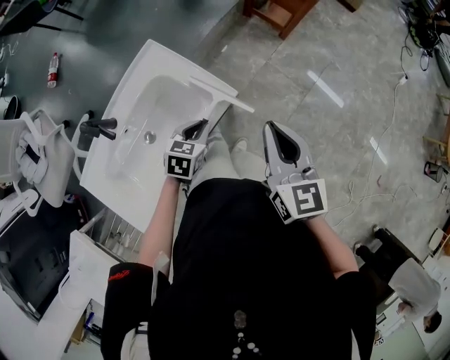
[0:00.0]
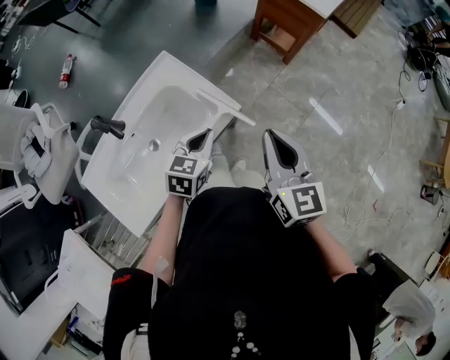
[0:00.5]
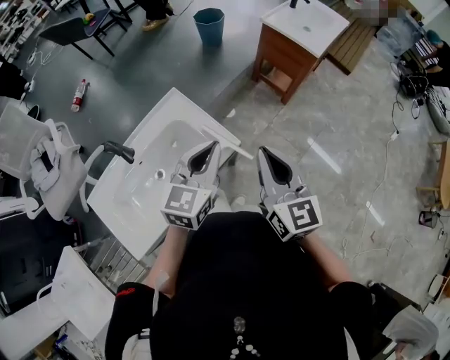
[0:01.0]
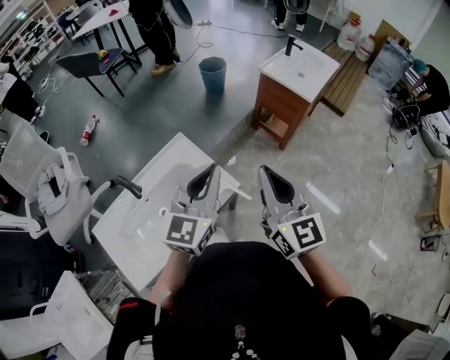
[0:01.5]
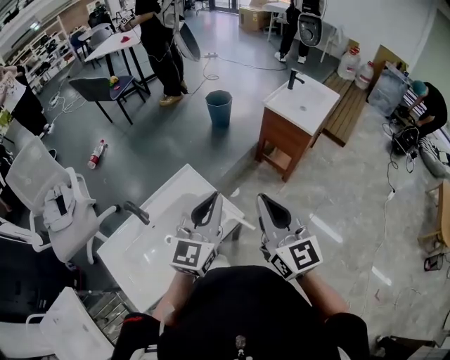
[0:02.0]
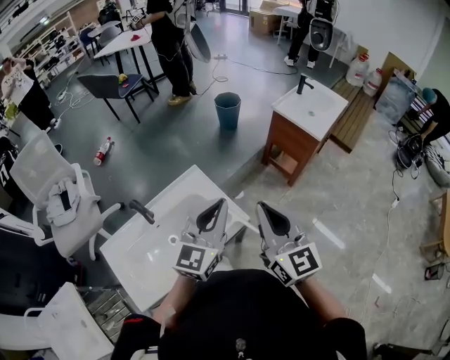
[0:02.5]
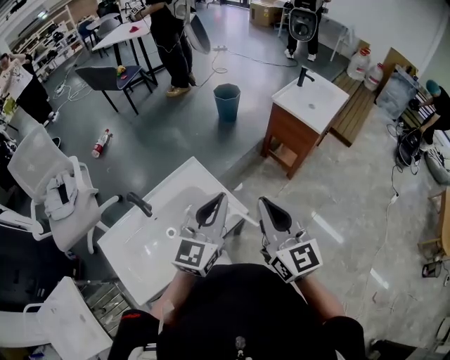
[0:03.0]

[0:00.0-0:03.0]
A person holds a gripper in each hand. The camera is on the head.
0:00.0 to 0:01.5: The right gripper goes some 15 cm upward, and turns by about 20 degrees; the left gripper heads upward, covering approximately 35 cm, and angles its fingers upward, by roughly 50 degrees.
0:01.5 to 0:03.0: The grippers move only a little.

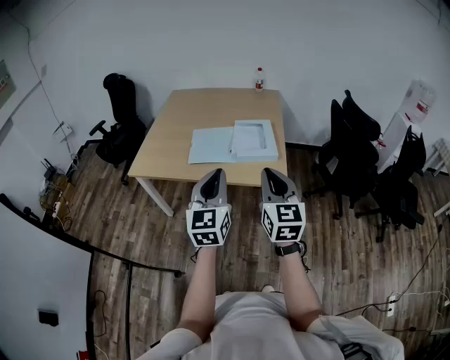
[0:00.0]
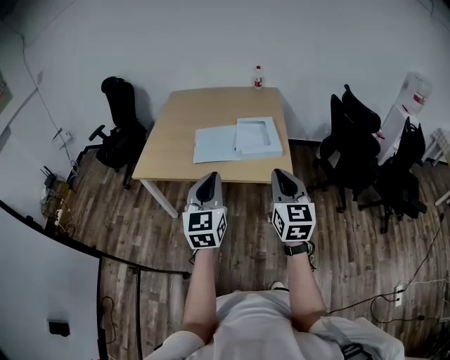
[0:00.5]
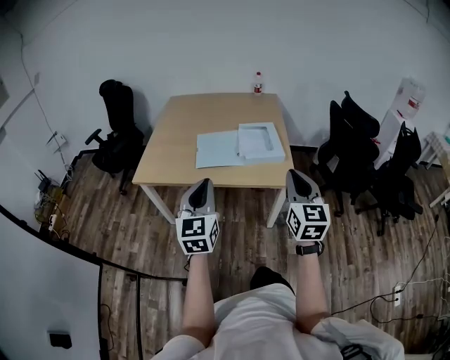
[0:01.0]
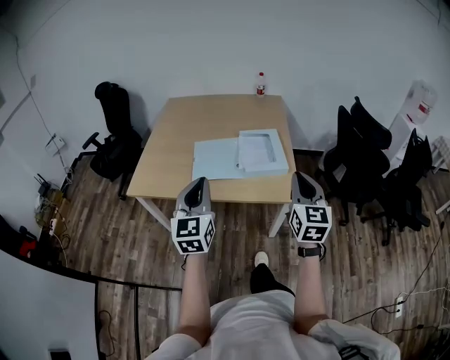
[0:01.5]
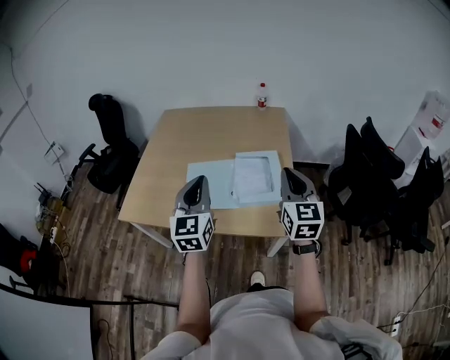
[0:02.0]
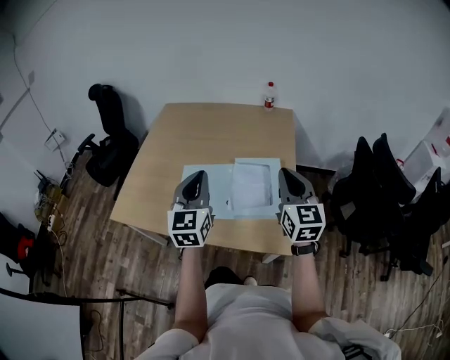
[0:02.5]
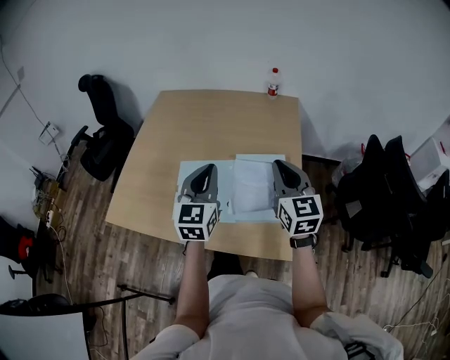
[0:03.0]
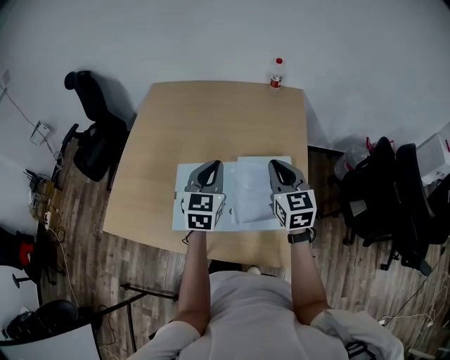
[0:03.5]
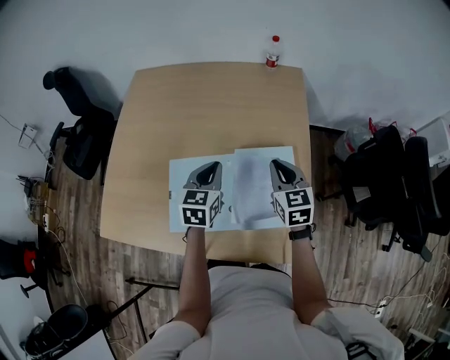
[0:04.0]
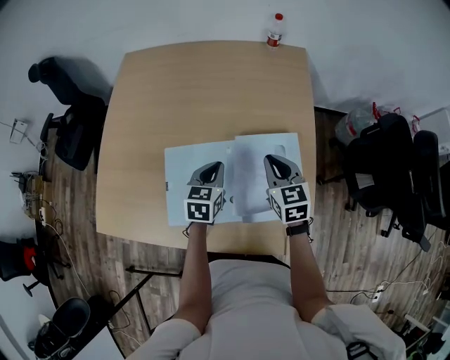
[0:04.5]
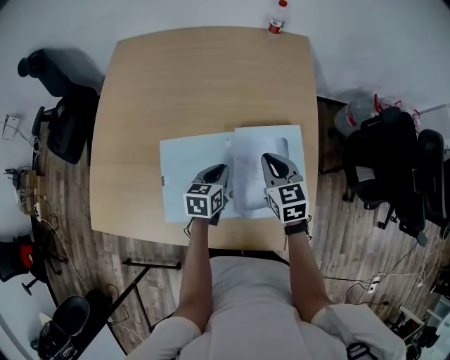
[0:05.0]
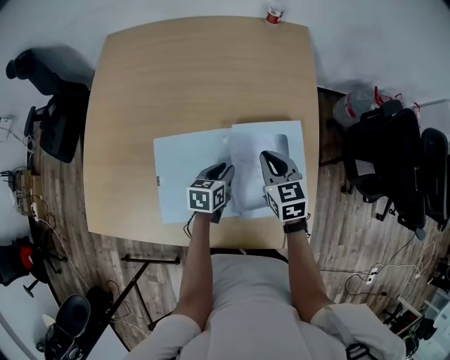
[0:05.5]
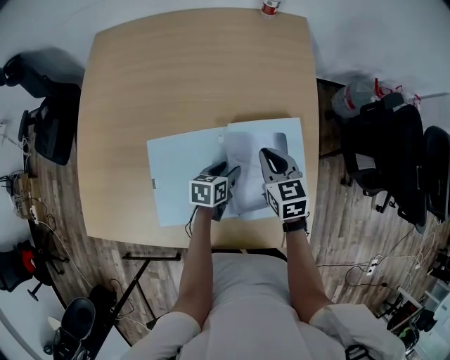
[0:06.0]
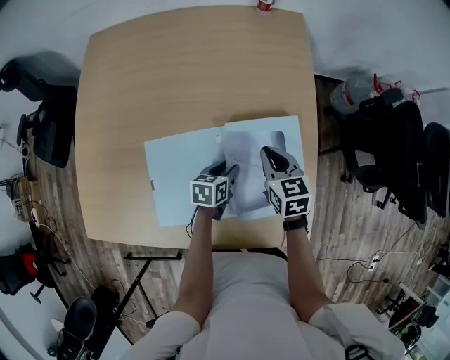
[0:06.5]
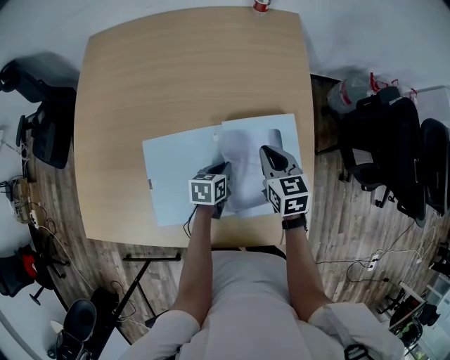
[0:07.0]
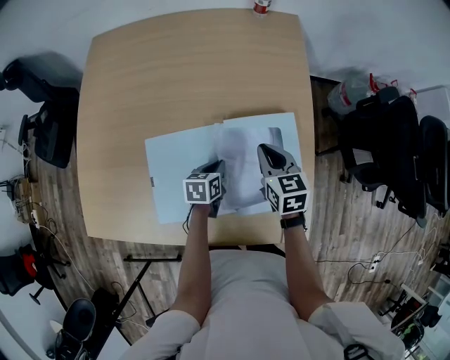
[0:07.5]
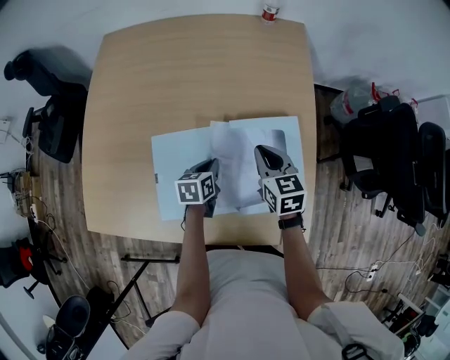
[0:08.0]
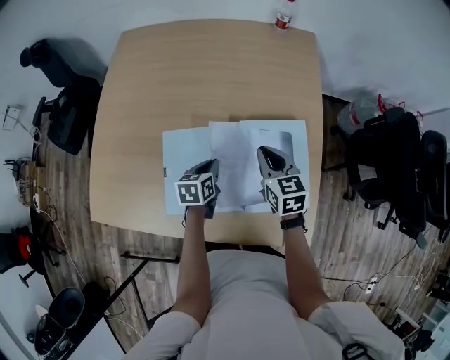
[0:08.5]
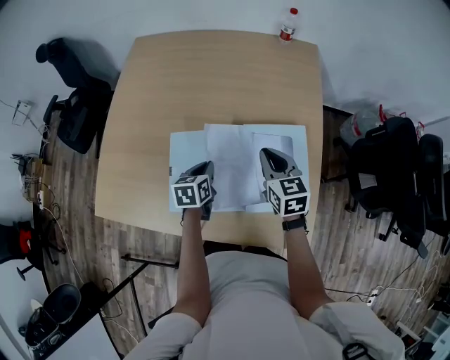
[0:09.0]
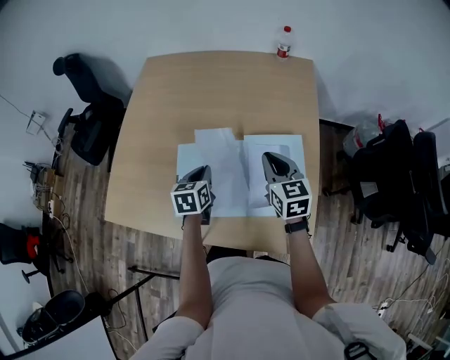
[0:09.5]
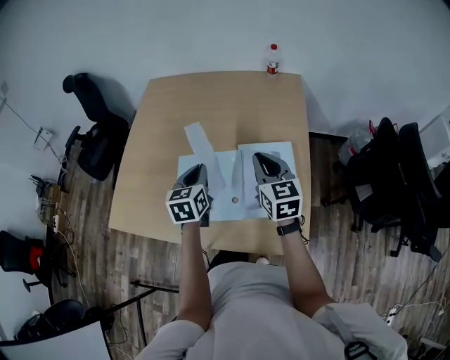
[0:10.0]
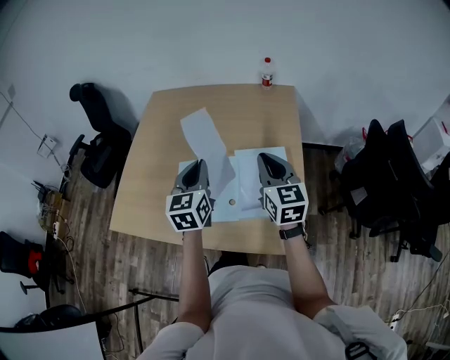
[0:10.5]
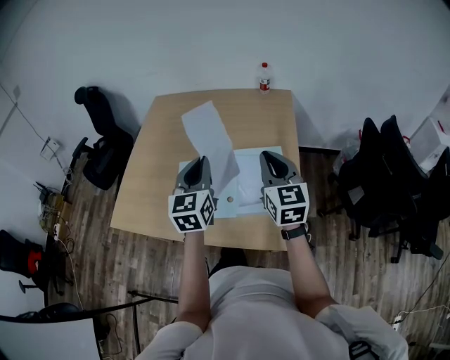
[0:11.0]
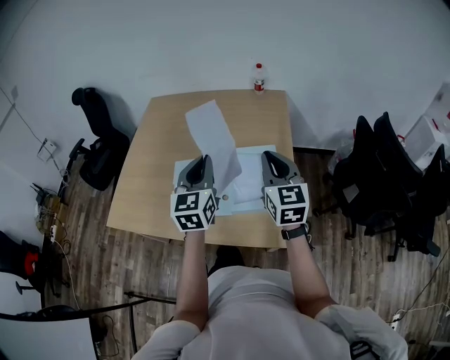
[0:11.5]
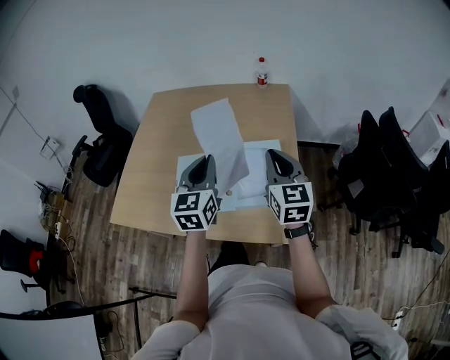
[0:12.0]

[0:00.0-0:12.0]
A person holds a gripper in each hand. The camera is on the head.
0:00.0 to 0:02.0: The grippers both shift forward by some 30 cm.
0:02.0 to 0:04.0: The two grippers go some 35 cm forward and downward. The left gripper changes its angle by roughly 30 degrees. The right gripper swivels approximately 30 degrees.
0:04.0 to 0:06.0: The right gripper moves downward, roughly 10 cm; the left gripper moves downward, some 25 cm, swivels approximately 40 degrees, and opens up.
0:06.0 to 0:08.0: The left gripper goes some 5 cm to the left, and closes up.
0:08.0 to 0:10.0: The left gripper heads upward, covering some 20 cm, and swivels some 30 degrees; the right gripper is displaced upward and backward by roughly 15 cm.
0:10.0 to 0:12.0: The left gripper shifts some 20 cm upward, backward and to the right, and changes its angle by some 20 degrees; the right gripper travels backward, upward and to the right by approximately 15 cm.

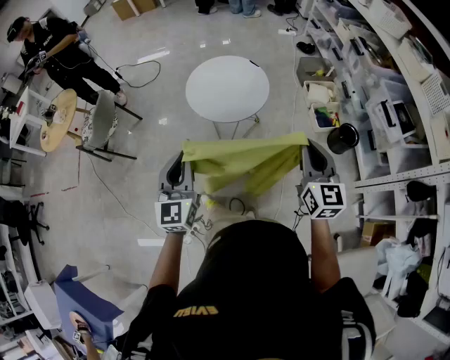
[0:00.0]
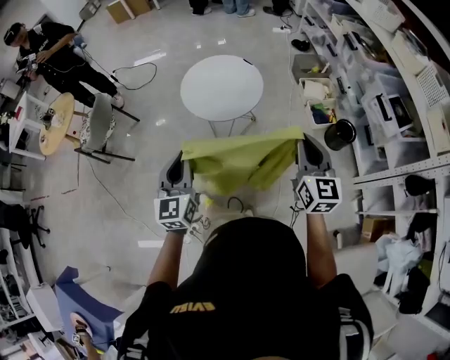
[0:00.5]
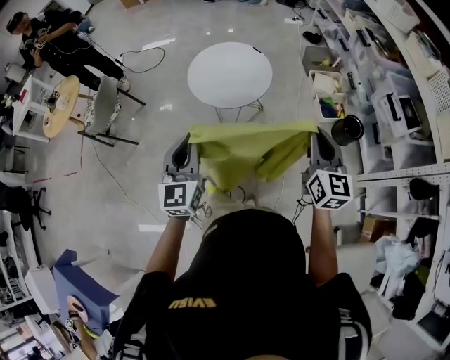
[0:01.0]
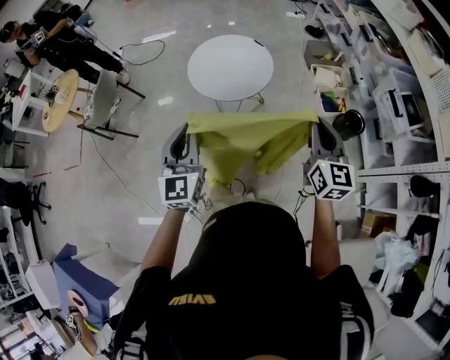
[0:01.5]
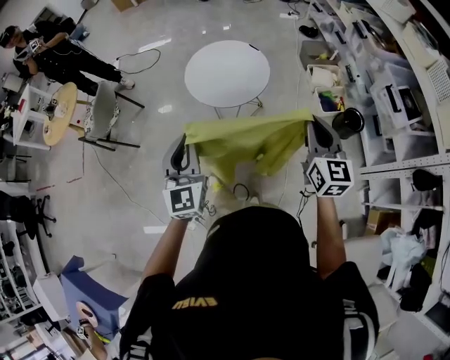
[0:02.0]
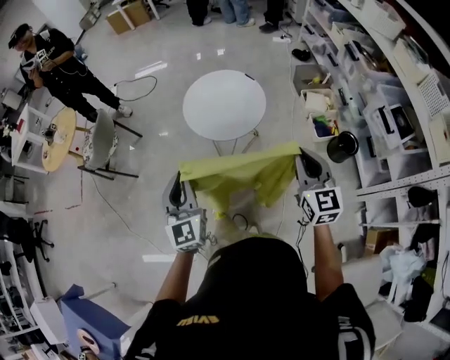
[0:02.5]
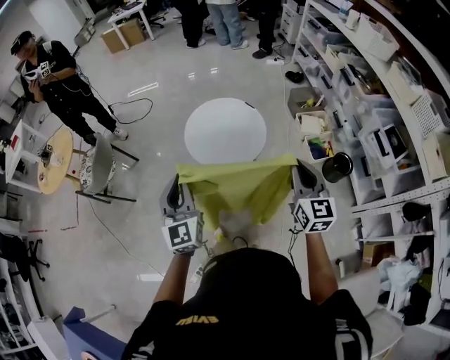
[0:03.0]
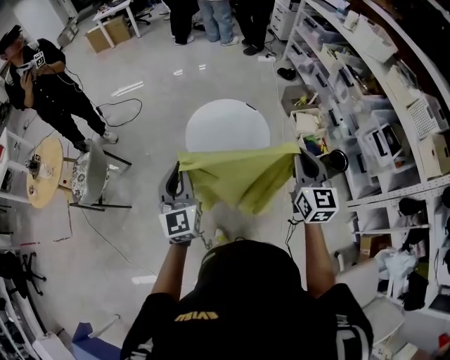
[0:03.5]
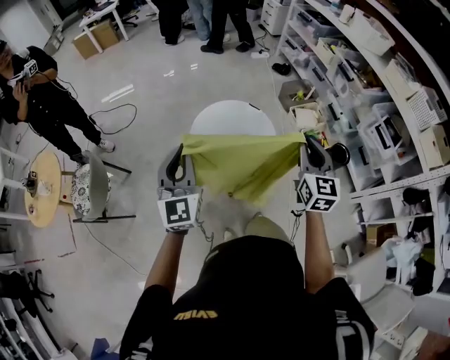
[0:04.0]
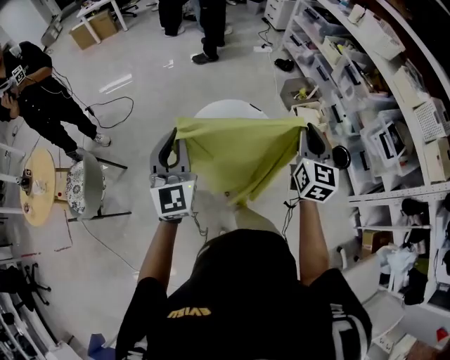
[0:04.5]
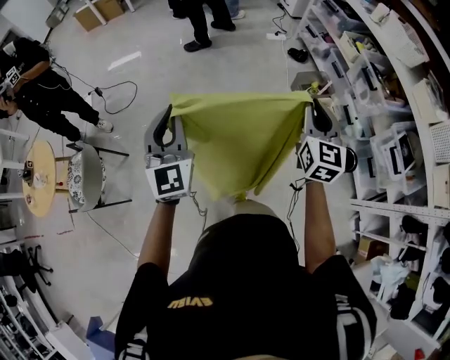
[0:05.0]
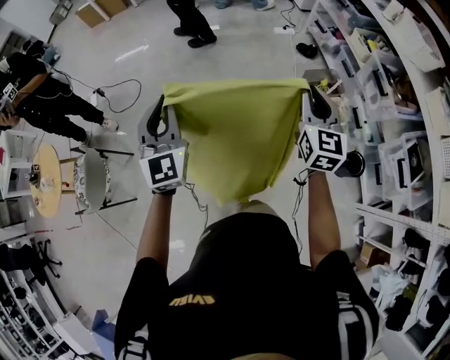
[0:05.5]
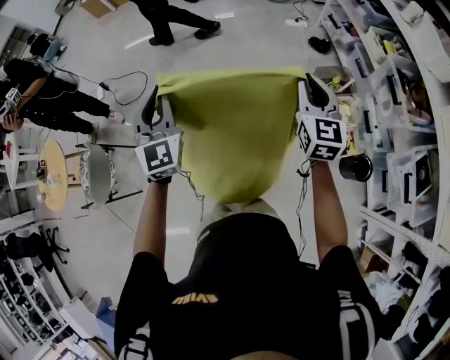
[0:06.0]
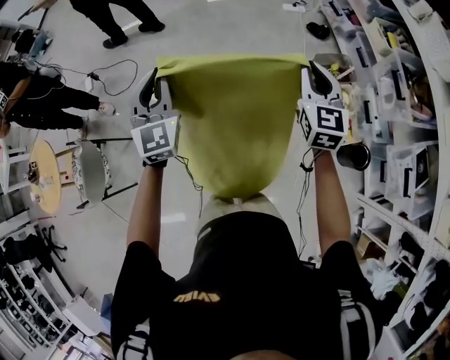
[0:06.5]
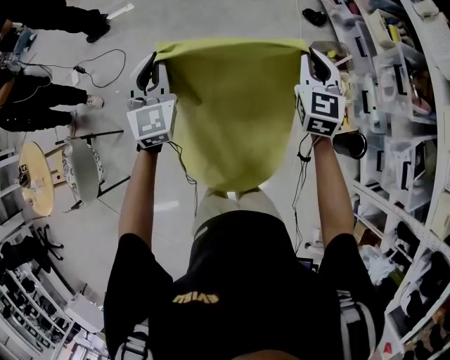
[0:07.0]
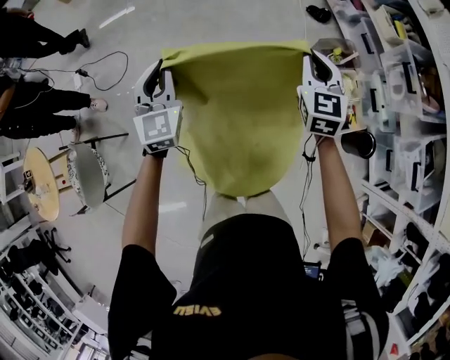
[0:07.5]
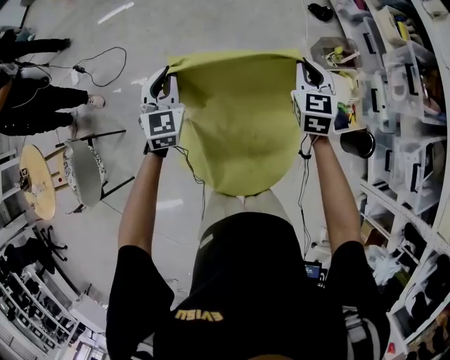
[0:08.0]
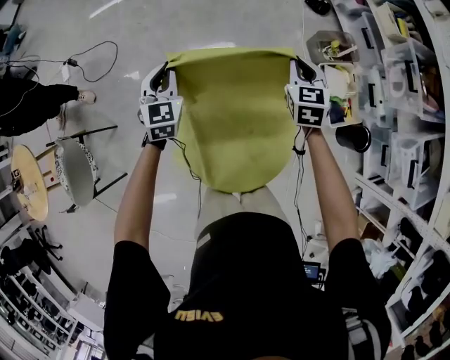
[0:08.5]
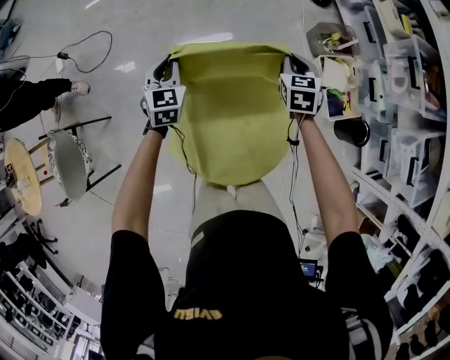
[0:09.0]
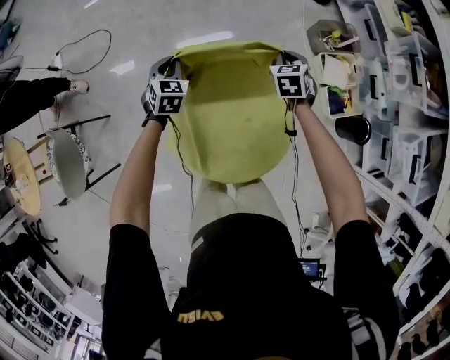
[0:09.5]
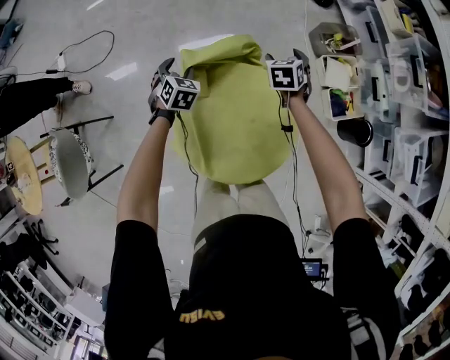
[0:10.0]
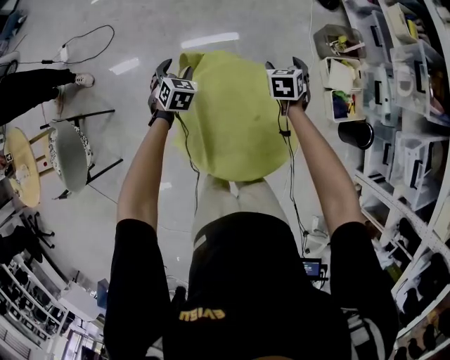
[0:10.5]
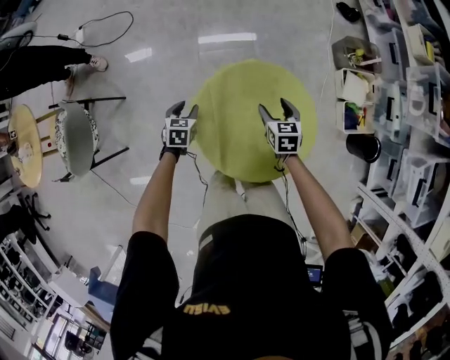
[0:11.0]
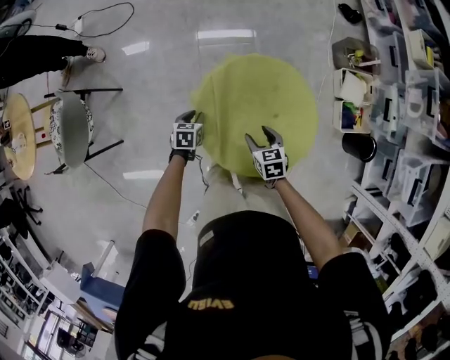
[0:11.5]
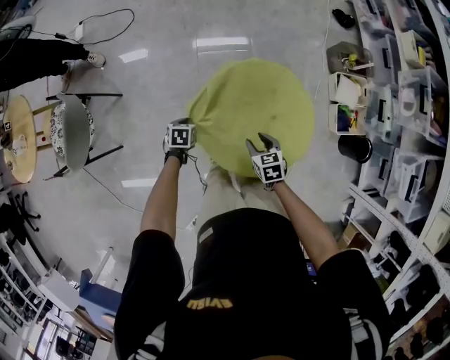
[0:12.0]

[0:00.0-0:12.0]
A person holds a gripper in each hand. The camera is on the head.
0:00.0 to 0:02.0: The grippers make only small movements.
0:02.0 to 0:04.0: Both grippers travel together forward and to the left, about 35 cm. The right gripper turns by about 20 degrees.
0:04.0 to 0:06.0: Both grippers are carried forward, about 40 cm.
0:06.0 to 0:08.0: The left gripper is displaced downward and forward by some 25 cm, and changes its angle by about 20 degrees; the right gripper goes about 20 cm downward, forward and to the left.
0:08.0 to 0:10.0: Both grippers travel together downward, about 20 cm. The right gripper turns by some 20 degrees, and opens up. The left gripper tips its fingers downward by roughly 30 degrees, and opens.
0:10.0 to 0:12.0: The right gripper goes about 35 cm backward and to the left, changes its angle by approximately 30 degrees, and closes up. Meanwhile the left gripper heads backward, to the left and downward, covering about 30 cm, swivels roughly 40 degrees, and closes up.
